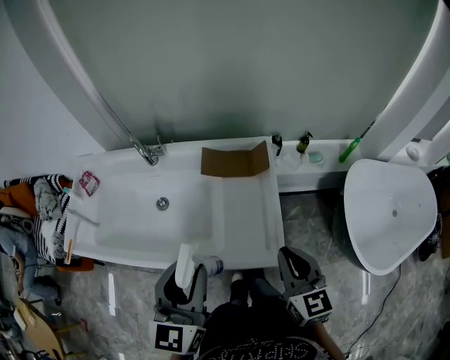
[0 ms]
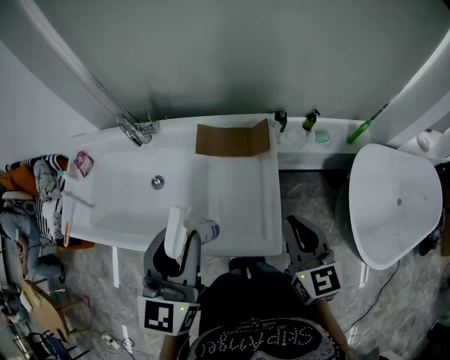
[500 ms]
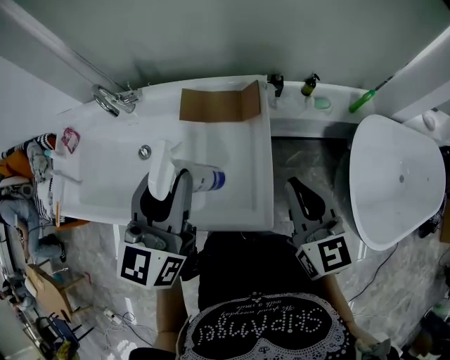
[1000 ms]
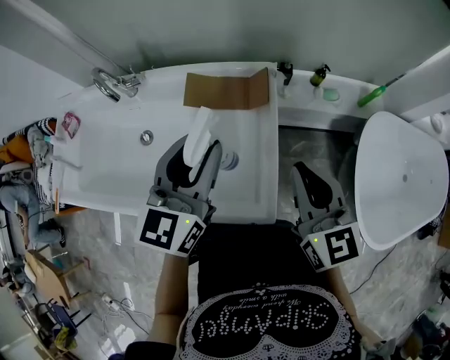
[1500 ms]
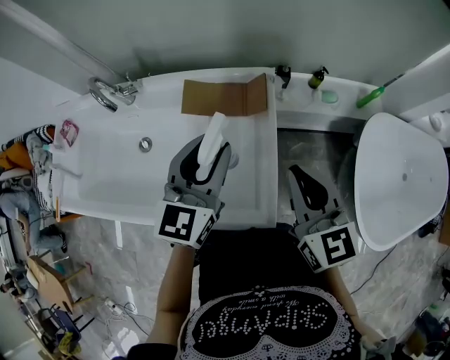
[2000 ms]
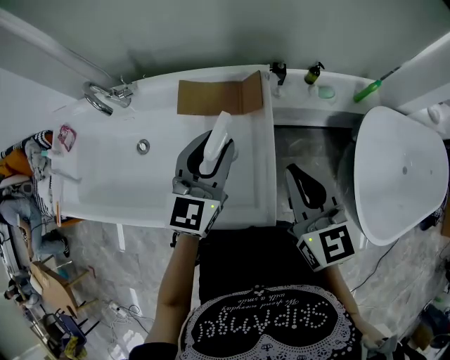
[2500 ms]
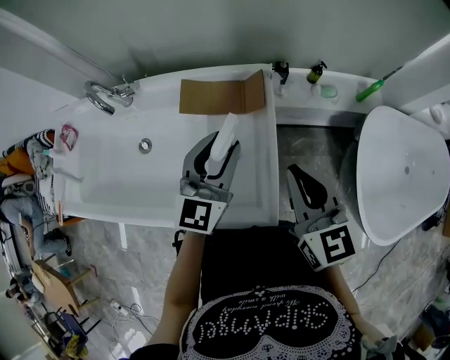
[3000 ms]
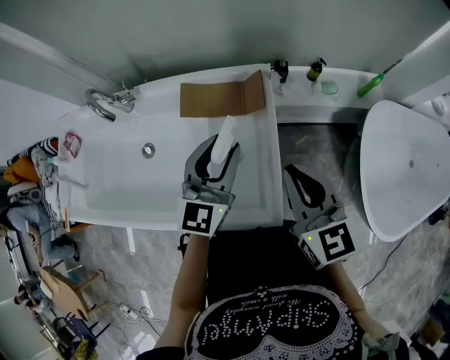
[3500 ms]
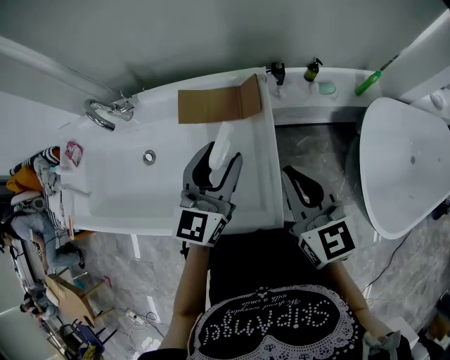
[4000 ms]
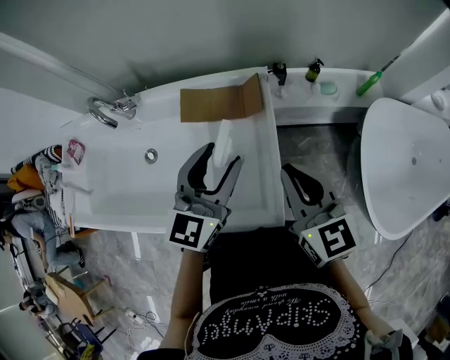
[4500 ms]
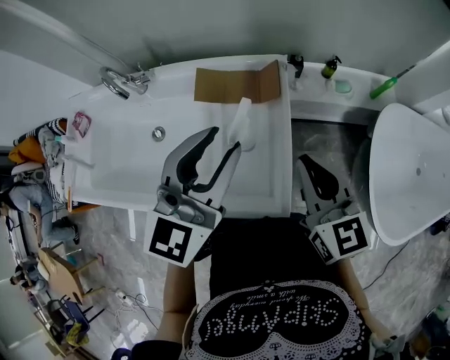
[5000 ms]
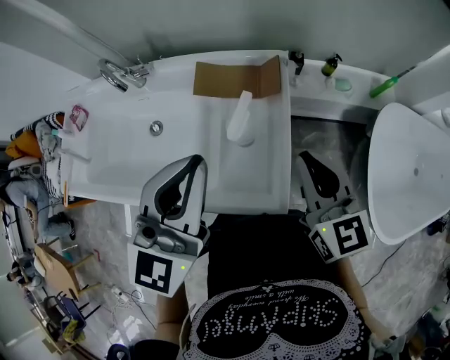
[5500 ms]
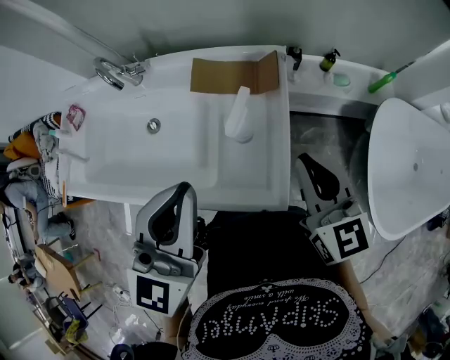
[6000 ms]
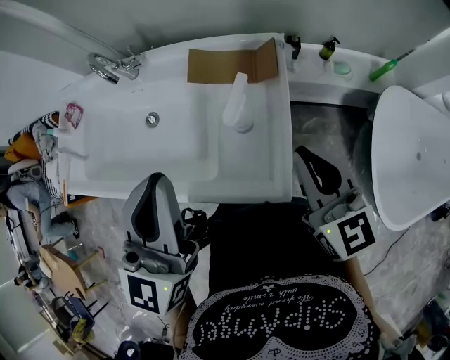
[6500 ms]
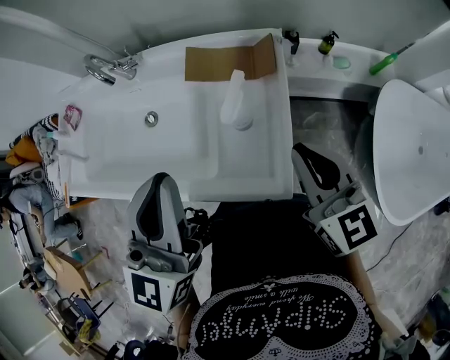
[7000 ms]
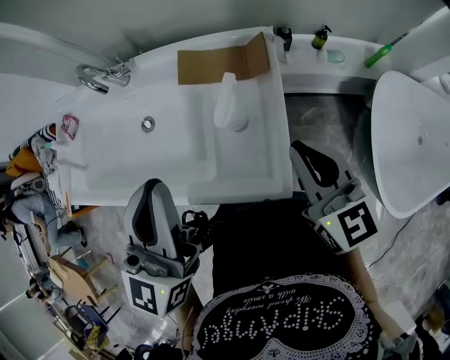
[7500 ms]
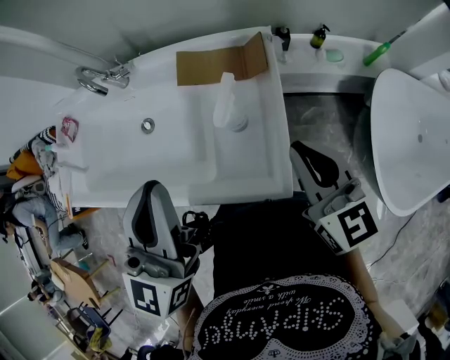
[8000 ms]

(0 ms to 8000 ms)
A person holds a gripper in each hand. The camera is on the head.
0 ms - 2000 ms: The right gripper travels forward and to the right by some 15 cm. The left gripper shifts roughly 25 cm forward, to the right and downward.
2000 ms - 4000 ms: The grippers move only a little.
4000 ms - 6000 ms: The left gripper shifts roughly 20 cm upward, backward and to the left, and closes up.
6000 ms - 8000 ms: The grippers stay close to where they were, moving slightly.

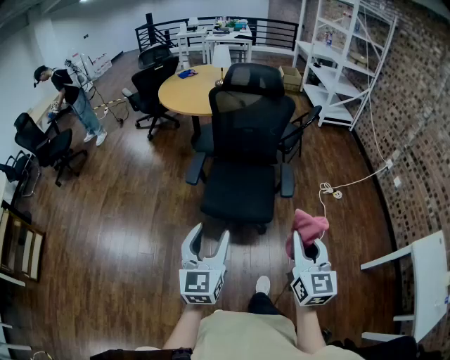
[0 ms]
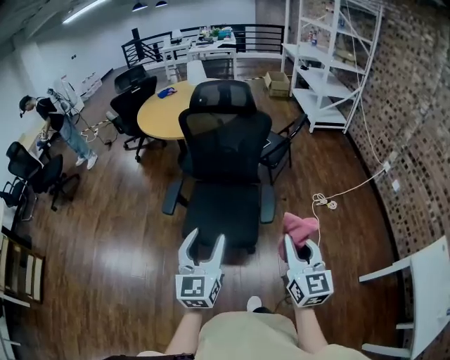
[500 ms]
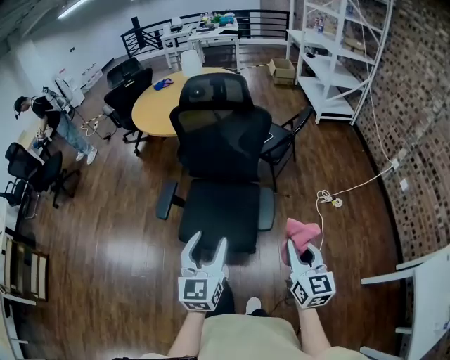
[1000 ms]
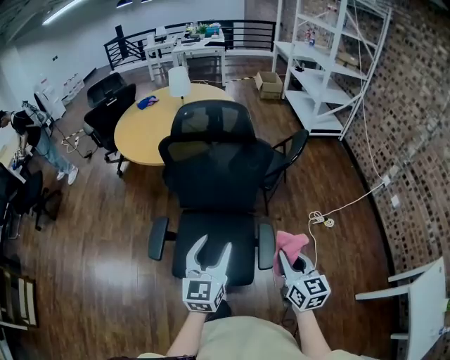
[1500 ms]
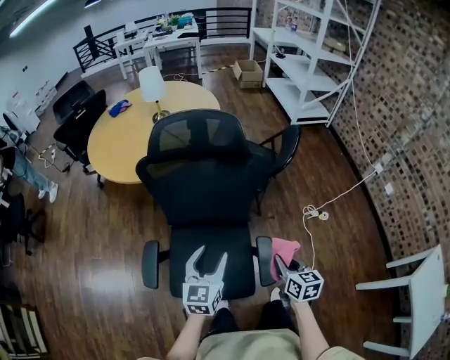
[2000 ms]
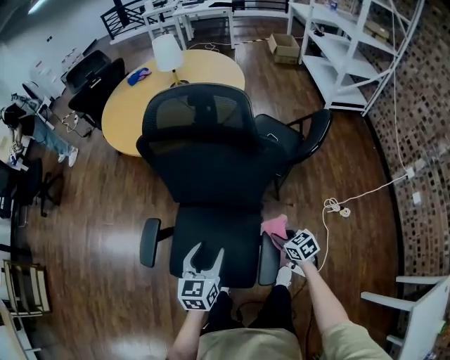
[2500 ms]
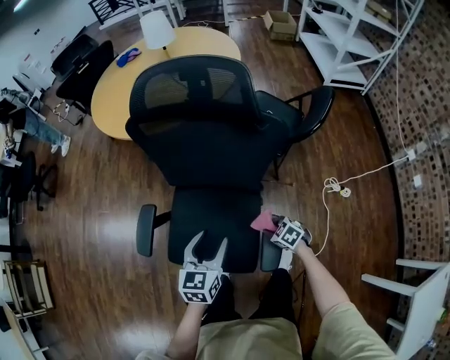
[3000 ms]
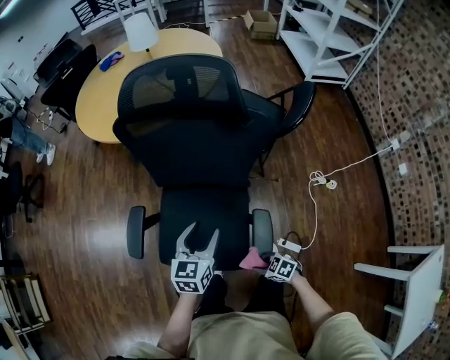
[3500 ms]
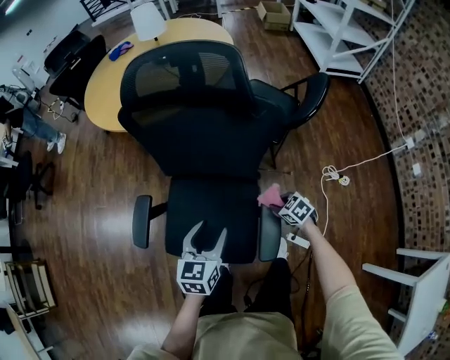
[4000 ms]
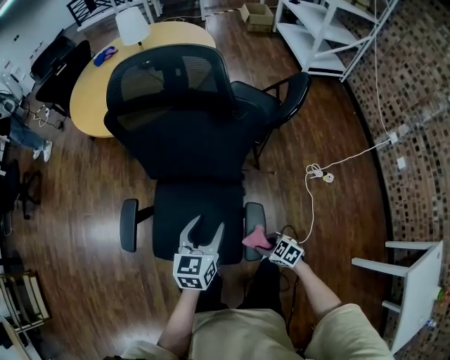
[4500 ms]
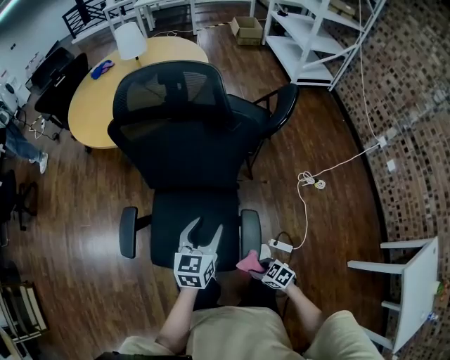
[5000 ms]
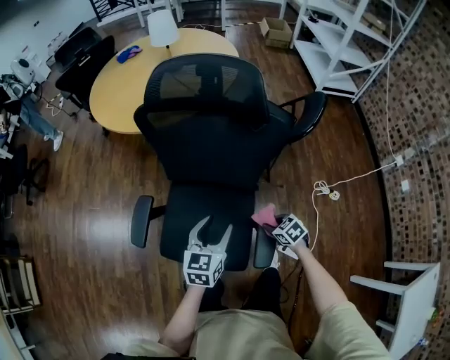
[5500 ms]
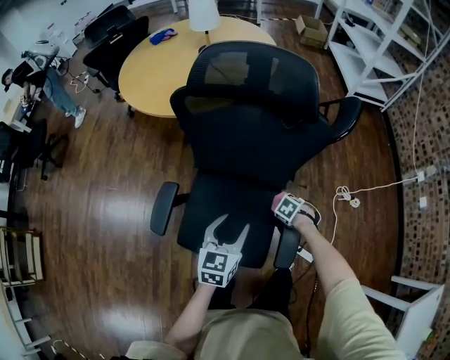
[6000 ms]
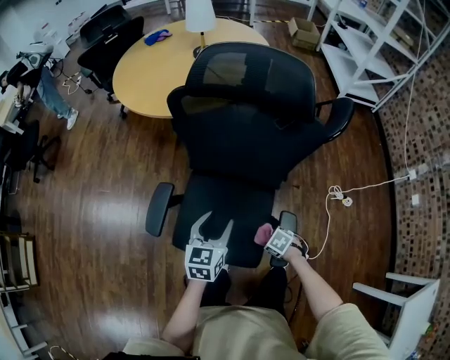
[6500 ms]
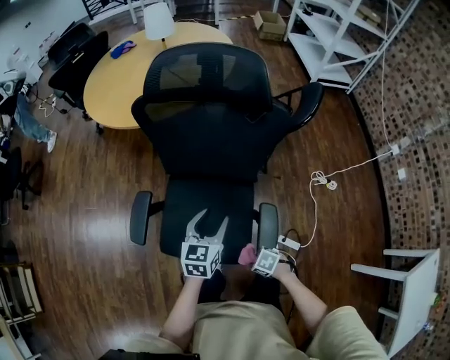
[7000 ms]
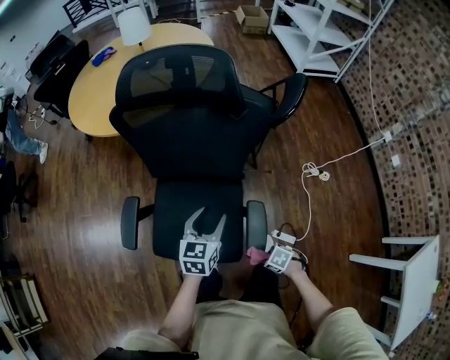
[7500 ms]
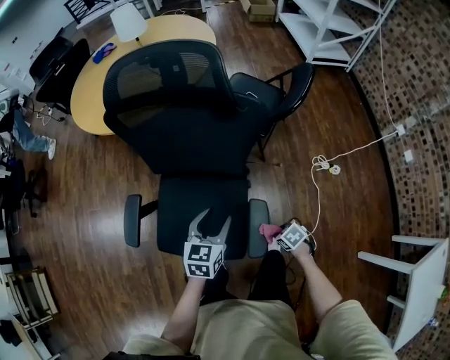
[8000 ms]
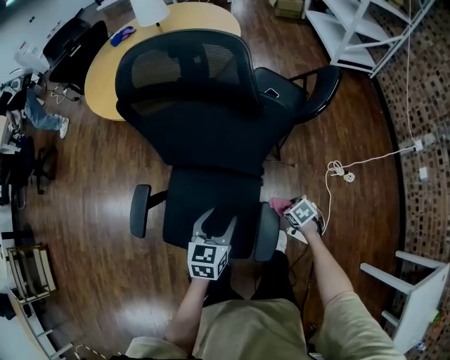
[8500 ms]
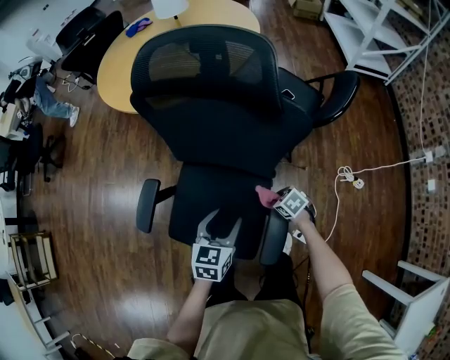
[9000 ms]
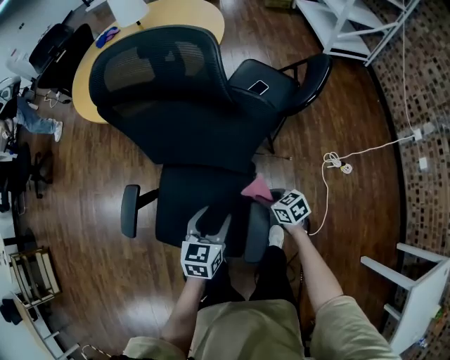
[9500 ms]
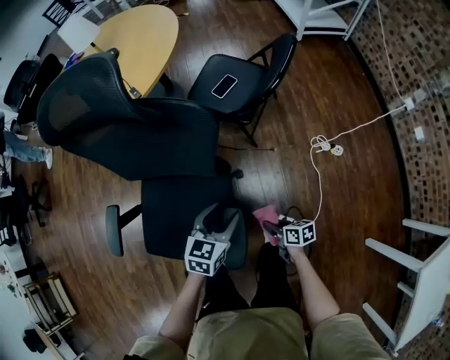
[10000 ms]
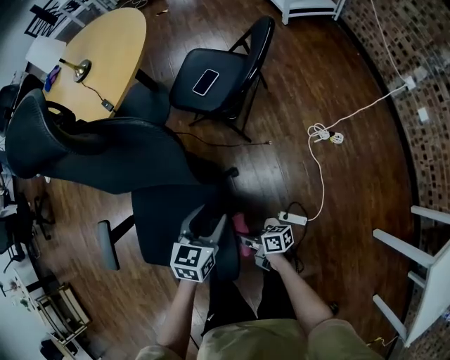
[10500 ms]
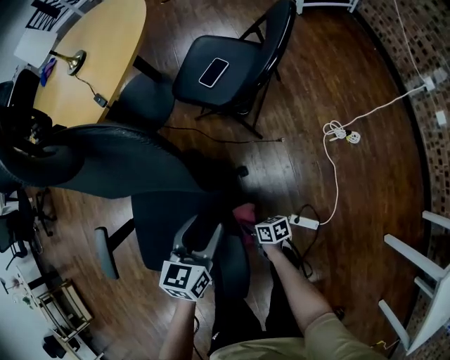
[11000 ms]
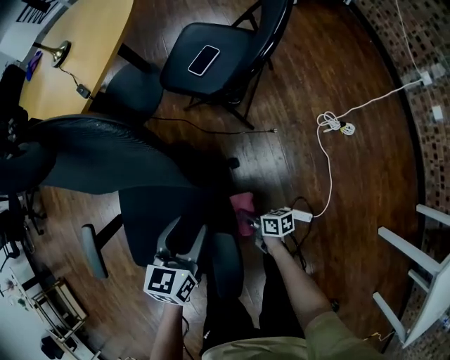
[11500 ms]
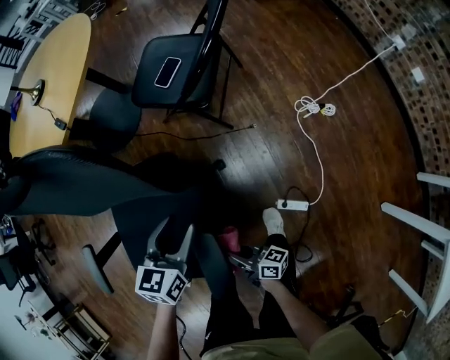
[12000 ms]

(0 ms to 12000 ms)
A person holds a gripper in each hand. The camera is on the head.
0 ms - 2000 ms: The pair of grippers is taken forward, about 50 cm. The right gripper shifts approximately 20 cm downward, and changes its angle by approximately 30 degrees.
2000 ms - 4000 ms: The left gripper travels downward by about 10 cm; the right gripper travels downward by roughly 25 cm, and swivels some 60 degrees.
4000 ms - 6000 ms: The right gripper turns by roughly 30 degrees.
6000 ms - 8000 ms: The right gripper moves approximately 20 cm, and rotates roughly 30 degrees. Meanwhile the left gripper ends up about 10 cm from where it was.
8000 ms - 10000 ms: The right gripper moves to the right, roughly 5 cm, travels forward and back again, some 20 cm each way, and points its fingers some 30 degrees further upward. Meanwhile the left gripper moves to the right and downward, roughly 15 cm.
10000 ms - 12000 ms: The right gripper goes about 10 cm to the left, moves approximately 15 cm downward and comes back, and angles its fingers upward, by about 40 degrees. Meanwhile the left gripper moves downward, some 5 cm.

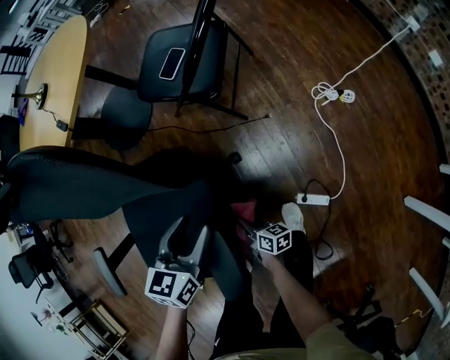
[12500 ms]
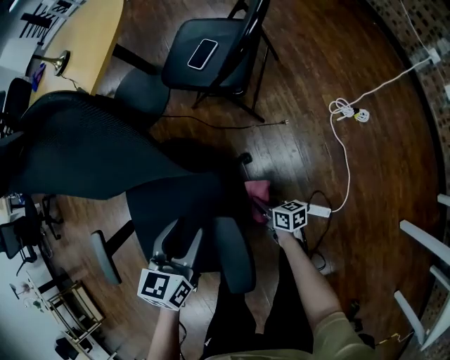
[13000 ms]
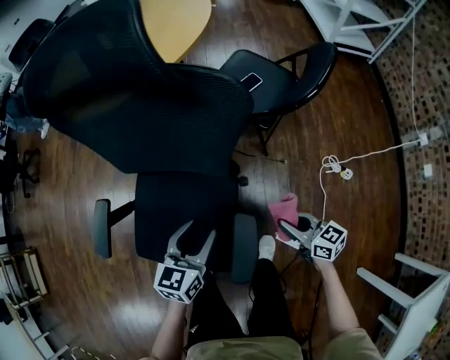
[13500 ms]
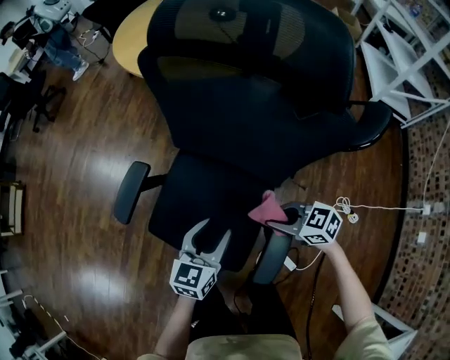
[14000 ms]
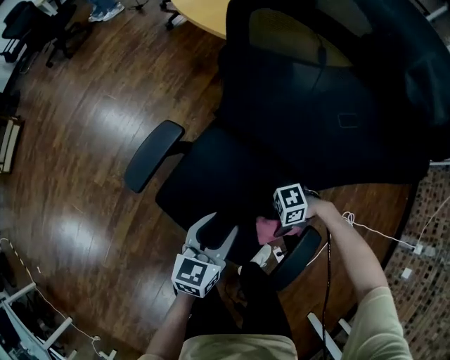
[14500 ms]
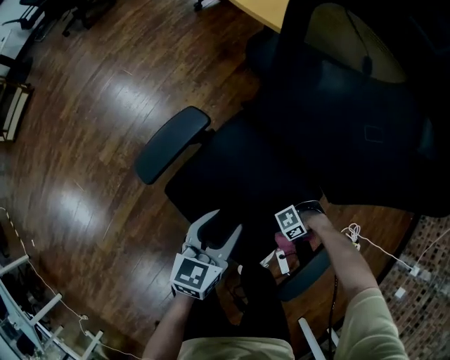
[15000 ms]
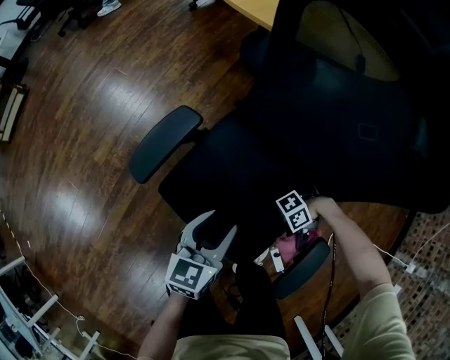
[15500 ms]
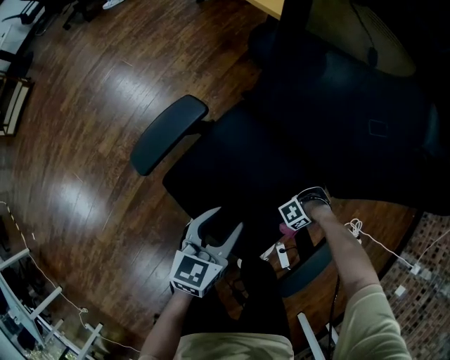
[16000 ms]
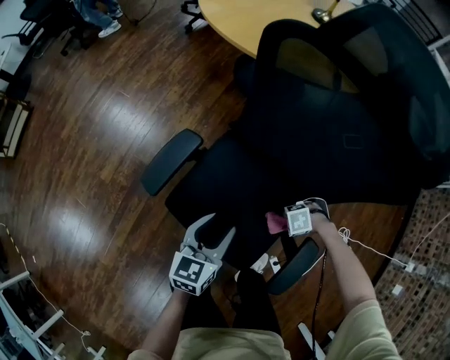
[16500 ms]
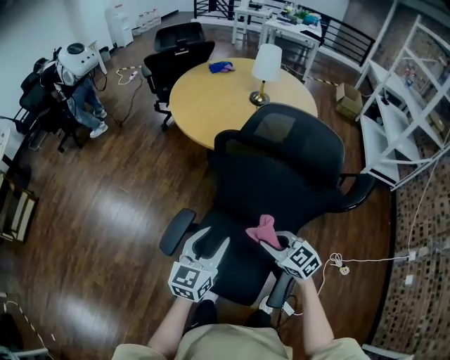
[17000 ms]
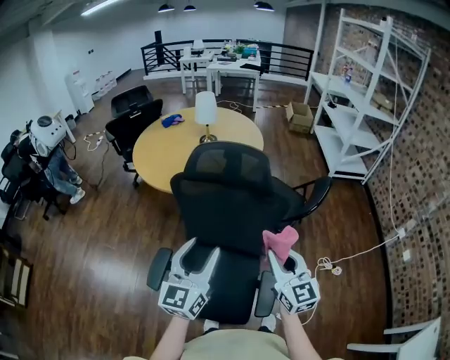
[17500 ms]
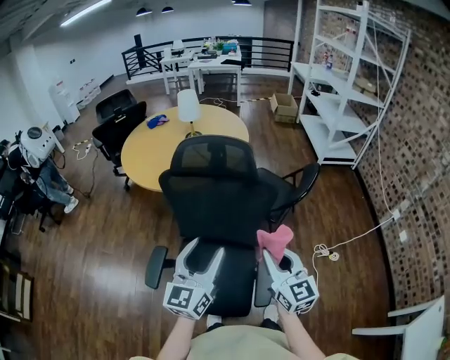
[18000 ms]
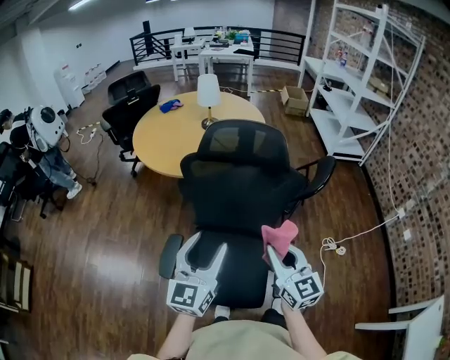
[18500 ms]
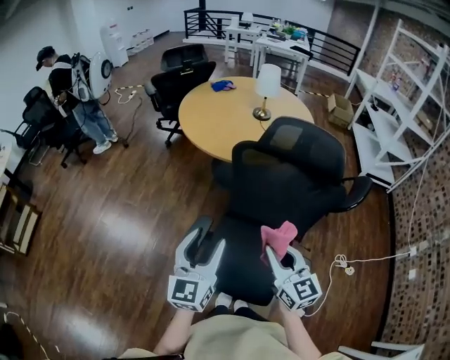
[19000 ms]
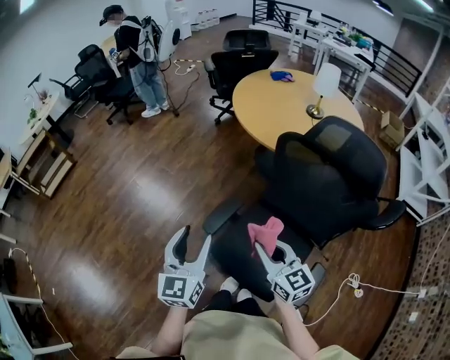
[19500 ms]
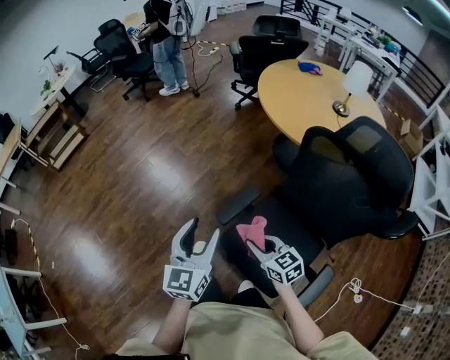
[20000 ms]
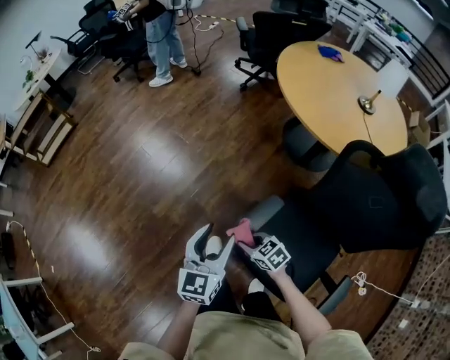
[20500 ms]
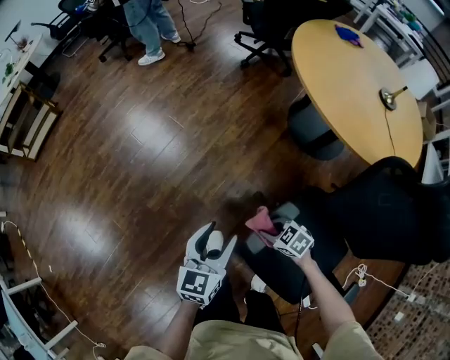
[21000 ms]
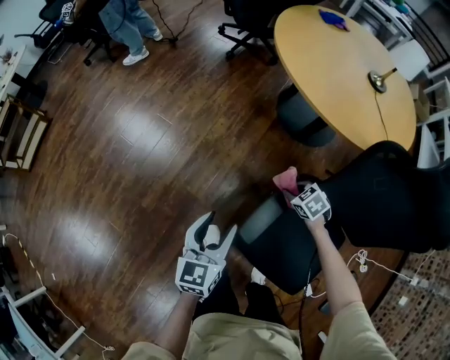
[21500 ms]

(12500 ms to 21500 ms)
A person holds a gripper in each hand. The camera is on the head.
12500 ms - 14500 ms: The right gripper heads upward, covering roughly 15 cm, and swivels approximately 160 degrees. The left gripper shifts by some 30 cm, and rotates approximately 50 degrees.
14500 ms - 17000 ms: The left gripper moves upward, about 25 cm. Meanwhile the right gripper goes up and down, about 40 cm each way, reversing 3 times, and turns by some 100 degrees.
17000 ms - 19500 ms: The right gripper changes place by approximately 20 cm, and swivels roughly 20 degrees. Meanwhile the left gripper changes place by approximately 25 cm, and rotates roughly 30 degrees.
19500 ms - 21500 ms: The grippers both shift downward and forward by about 40 cm. The left gripper swivels about 20 degrees. The right gripper tilts its fingers about 60 degrees downward.
